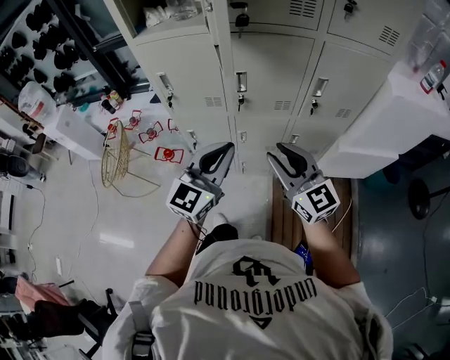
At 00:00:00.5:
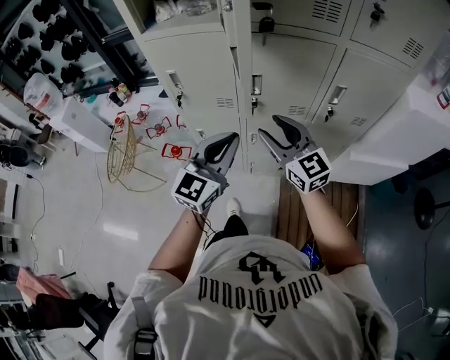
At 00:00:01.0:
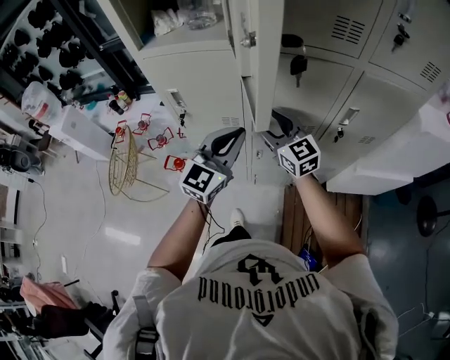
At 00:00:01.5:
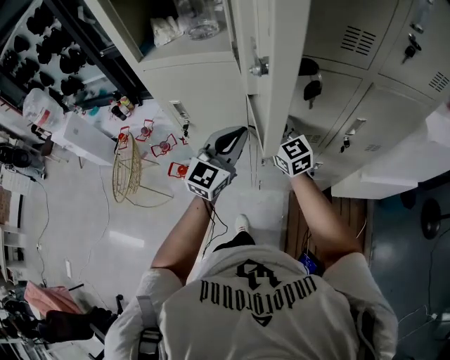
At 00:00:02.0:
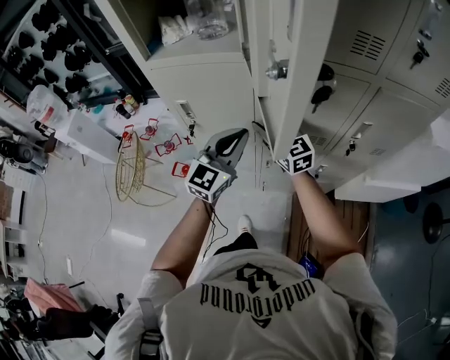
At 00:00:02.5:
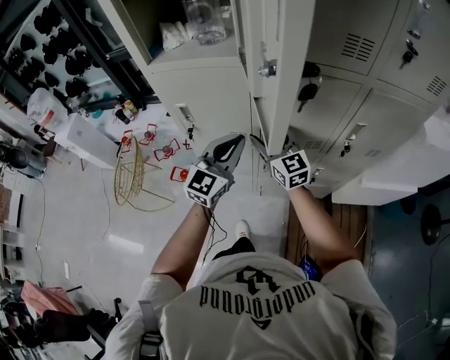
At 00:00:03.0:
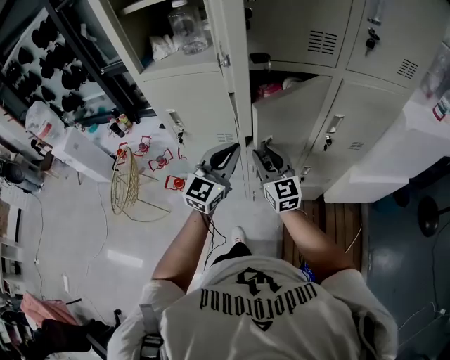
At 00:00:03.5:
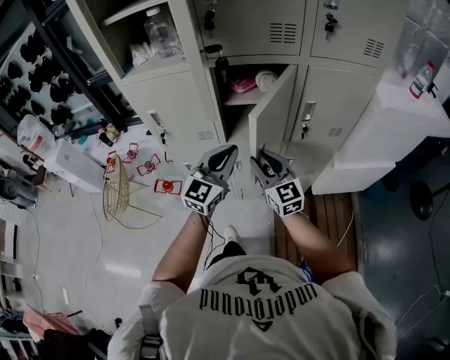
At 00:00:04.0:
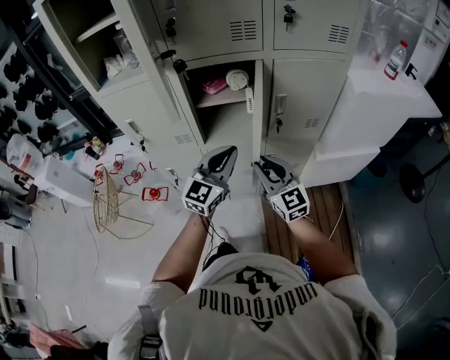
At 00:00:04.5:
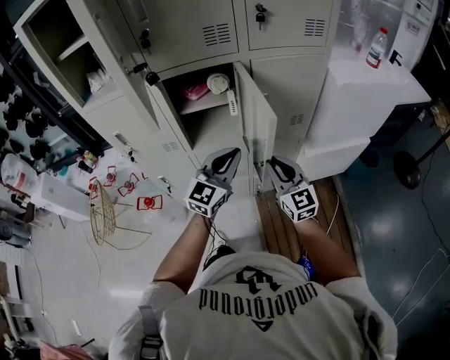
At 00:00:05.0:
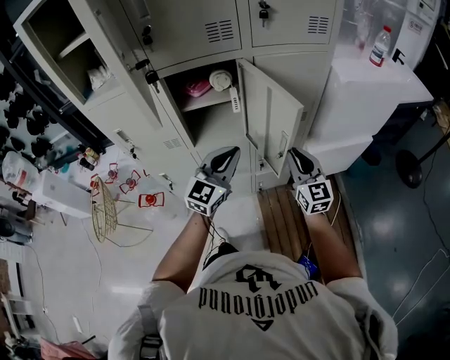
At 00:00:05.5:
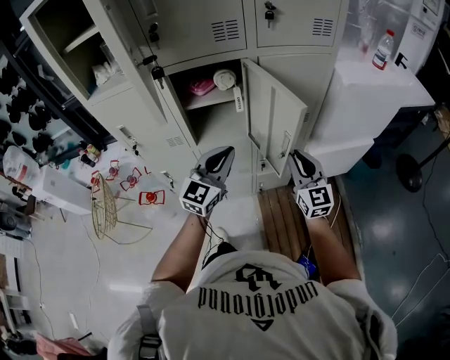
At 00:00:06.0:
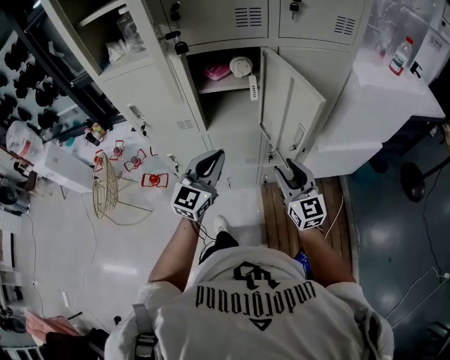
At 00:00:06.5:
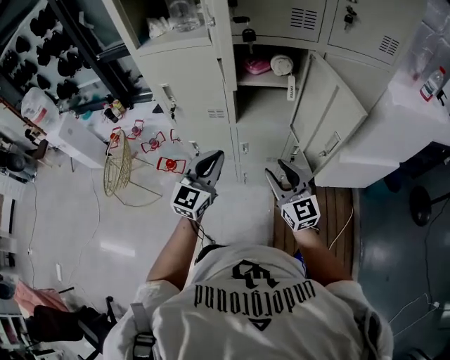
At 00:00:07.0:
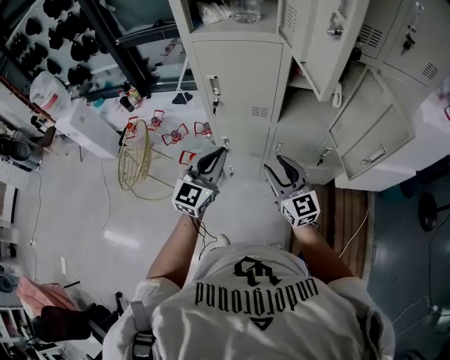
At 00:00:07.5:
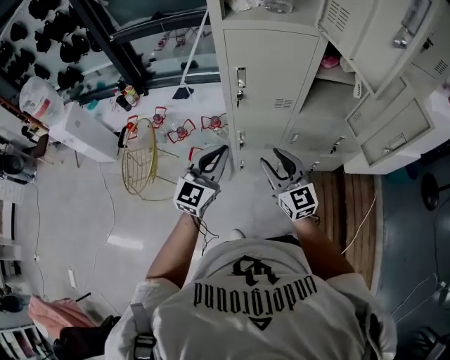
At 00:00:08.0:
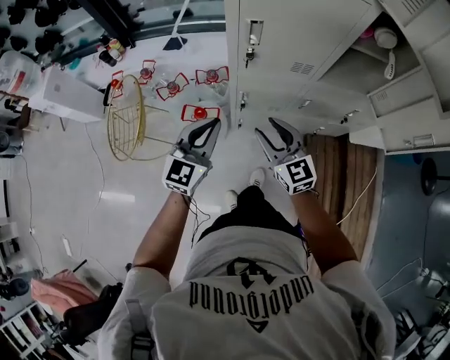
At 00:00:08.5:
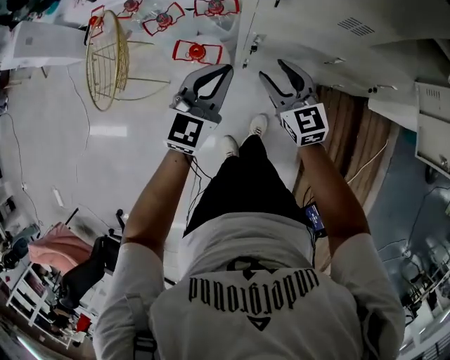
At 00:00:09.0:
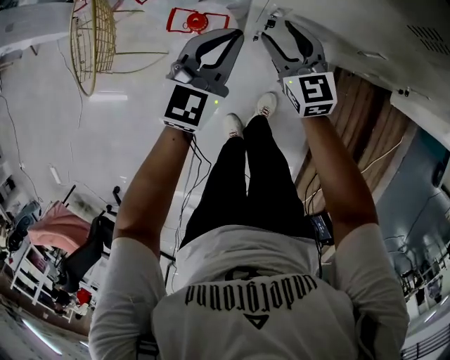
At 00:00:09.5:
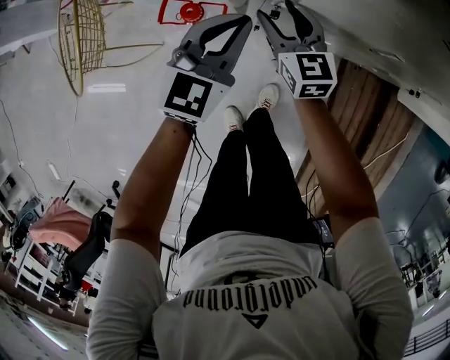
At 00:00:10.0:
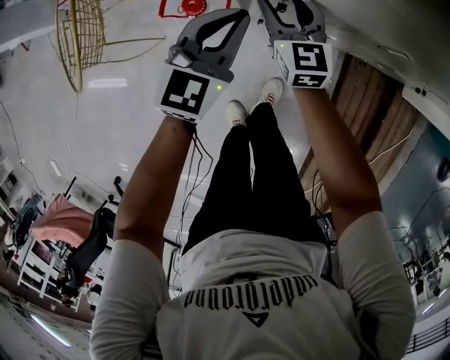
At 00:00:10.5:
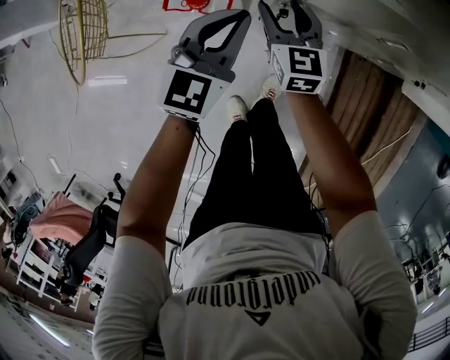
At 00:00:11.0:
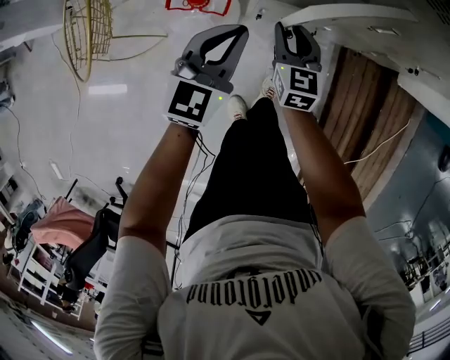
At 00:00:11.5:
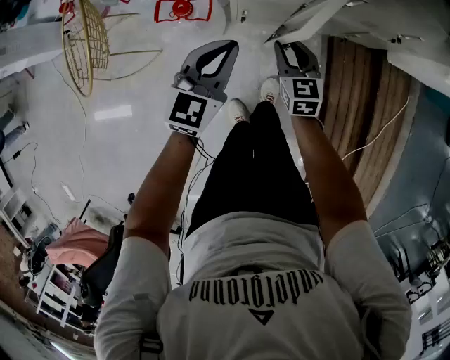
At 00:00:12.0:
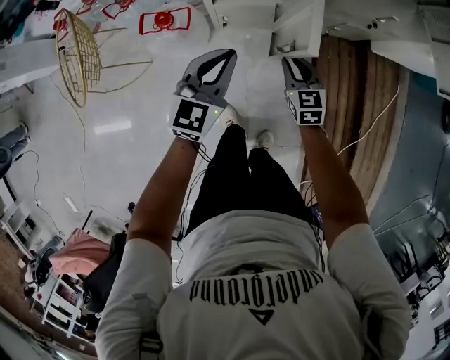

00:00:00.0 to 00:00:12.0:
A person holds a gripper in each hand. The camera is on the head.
00:00:00.0 to 00:00:02.0: Both grippers travel together forward, some 25 cm. The right gripper opens.
00:00:02.0 to 00:00:04.0: The two grippers go about 25 cm to the right and backward. The right gripper closes.
00:00:04.0 to 00:00:06.0: The left gripper shifts by about 5 cm, while the right gripper goes approximately 5 cm to the right.
00:00:06.0 to 00:00:08.0: The pair of grippers is taken to the left, some 50 cm.
00:00:08.0 to 00:00:10.0: Both grippers move downward and forward, about 35 cm.
00:00:10.0 to 00:00:12.0: The left gripper travels backward and to the right by about 20 cm, while the right gripper heads to the right and backward, covering about 30 cm, swivels roughly 20 degrees, and closes its fingers.

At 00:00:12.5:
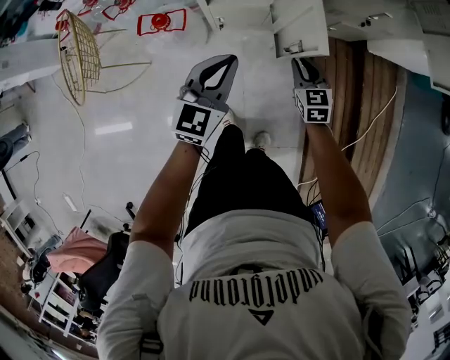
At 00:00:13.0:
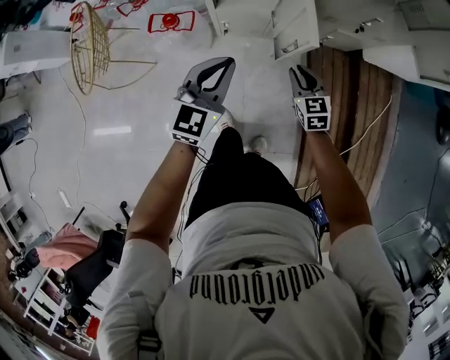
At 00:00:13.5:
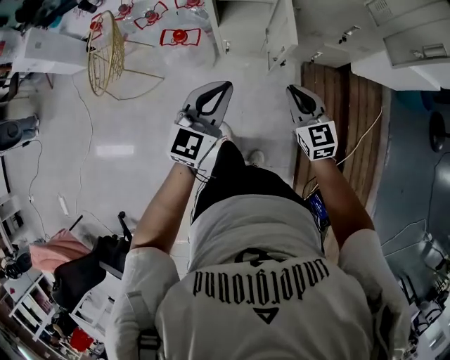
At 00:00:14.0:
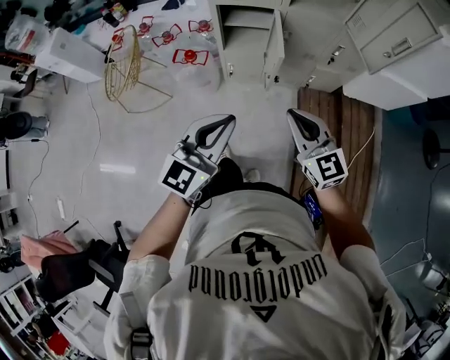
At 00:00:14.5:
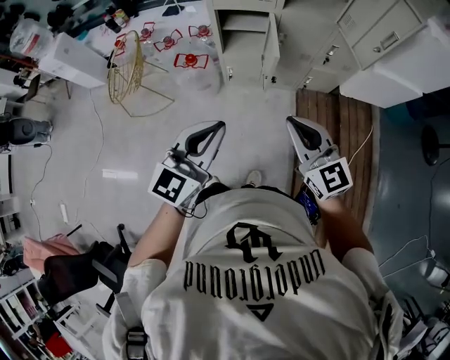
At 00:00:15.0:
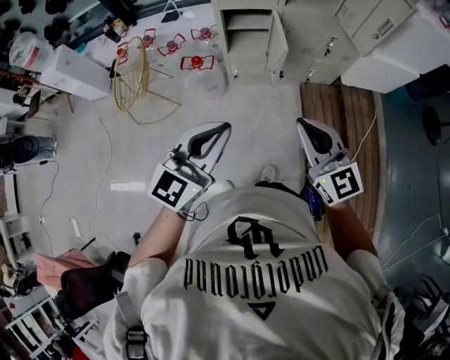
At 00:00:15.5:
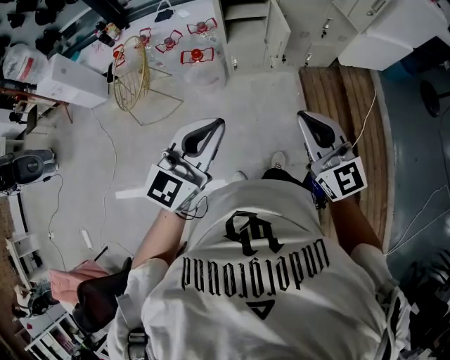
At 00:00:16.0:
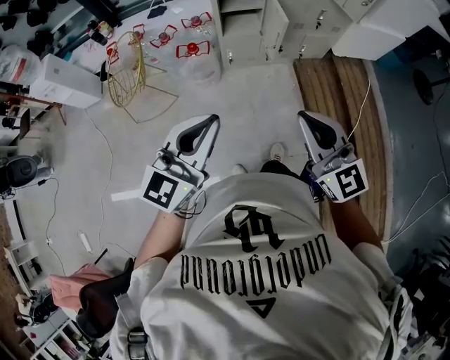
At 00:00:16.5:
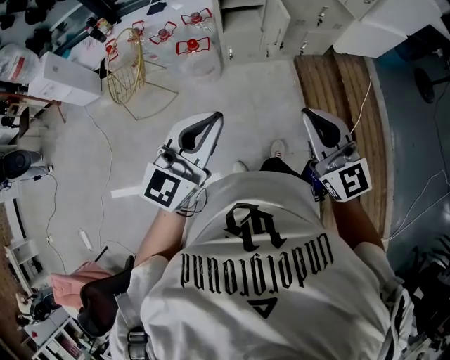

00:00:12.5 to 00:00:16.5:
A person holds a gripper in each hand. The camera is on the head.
00:00:12.5 to 00:00:14.5: The right gripper heads upward and backward, covering about 50 cm, and rotates approximately 40 degrees. Meanwhile the left gripper moves backward and upward, roughly 40 cm.
00:00:14.5 to 00:00:16.5: The right gripper is displaced backward and to the left by approximately 20 cm; the left gripper heads to the left and backward, covering roughly 20 cm.

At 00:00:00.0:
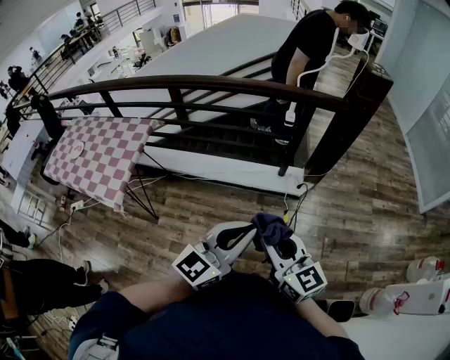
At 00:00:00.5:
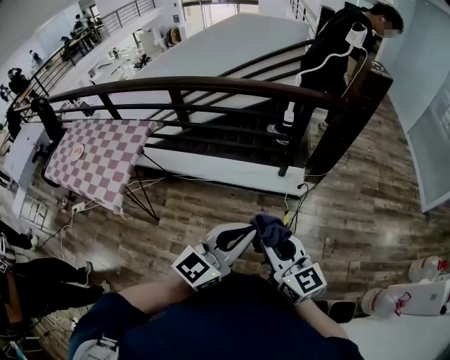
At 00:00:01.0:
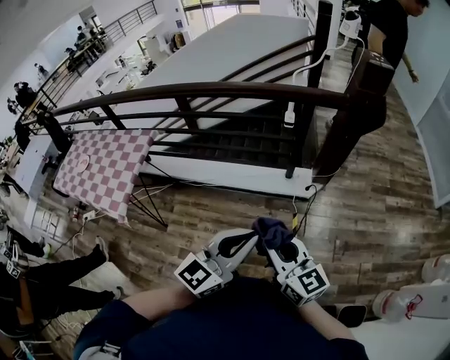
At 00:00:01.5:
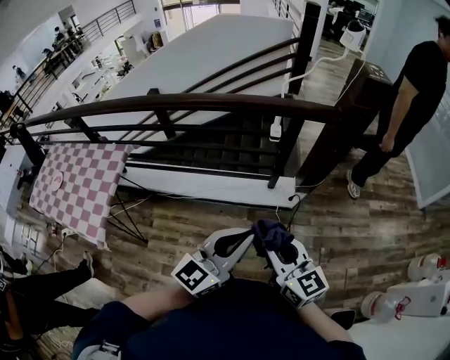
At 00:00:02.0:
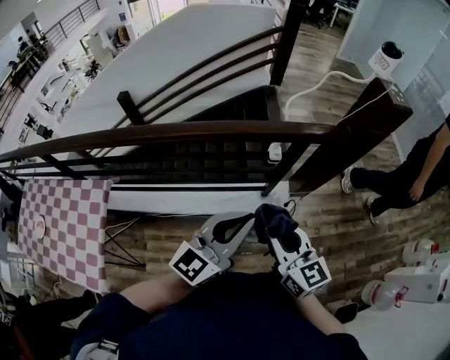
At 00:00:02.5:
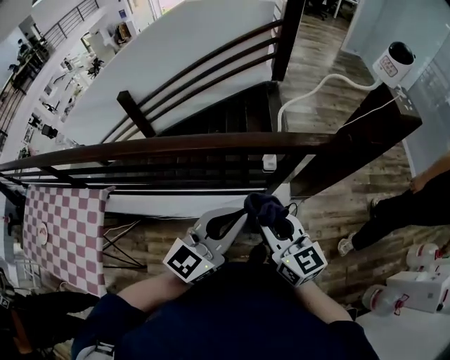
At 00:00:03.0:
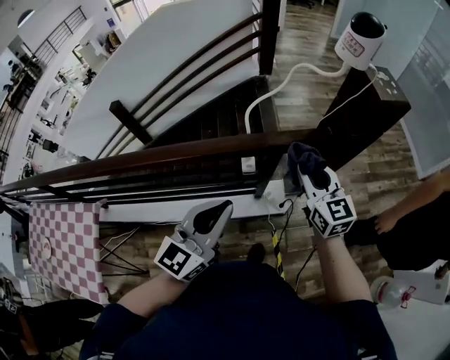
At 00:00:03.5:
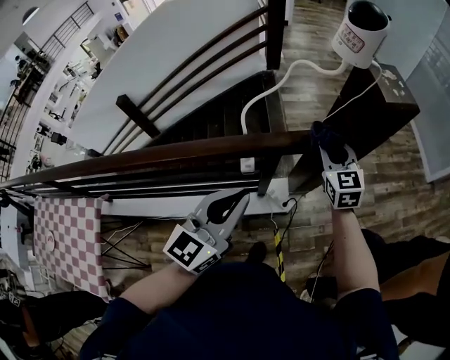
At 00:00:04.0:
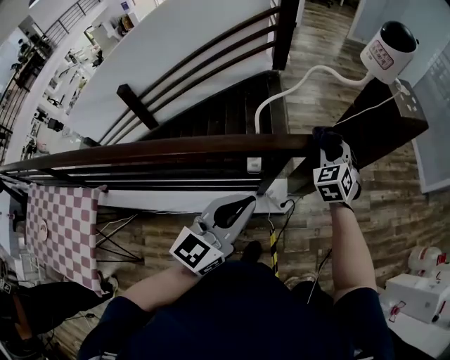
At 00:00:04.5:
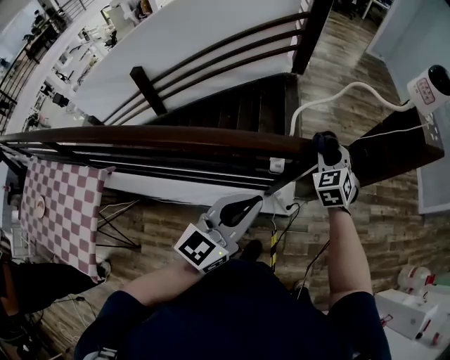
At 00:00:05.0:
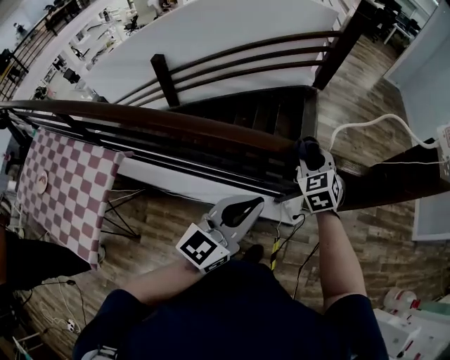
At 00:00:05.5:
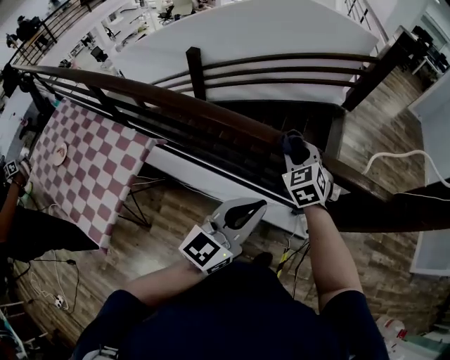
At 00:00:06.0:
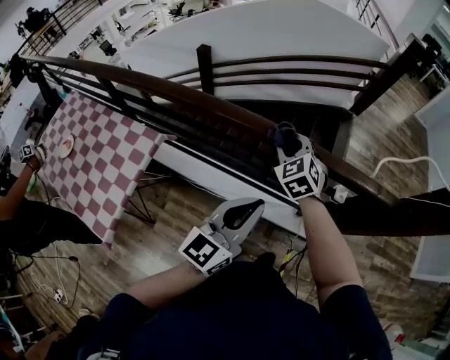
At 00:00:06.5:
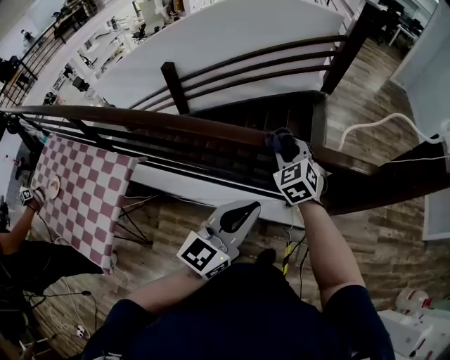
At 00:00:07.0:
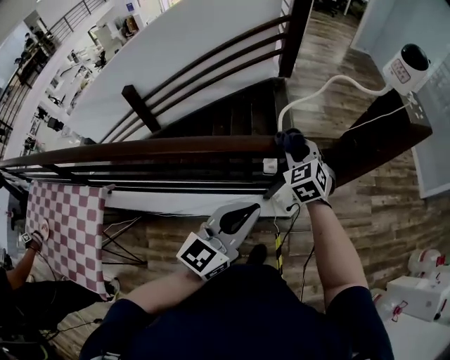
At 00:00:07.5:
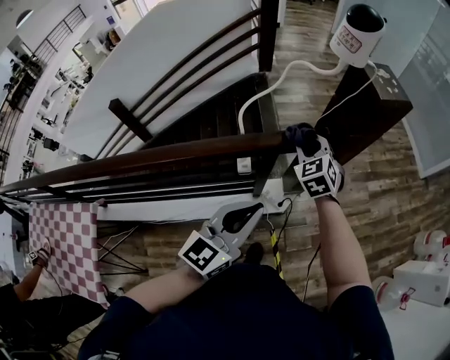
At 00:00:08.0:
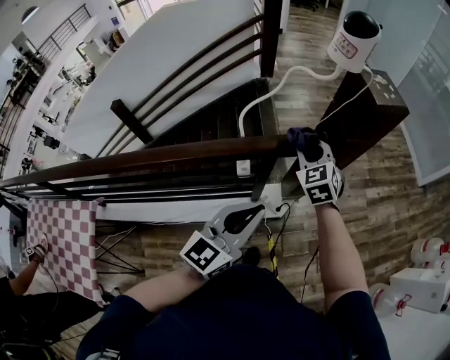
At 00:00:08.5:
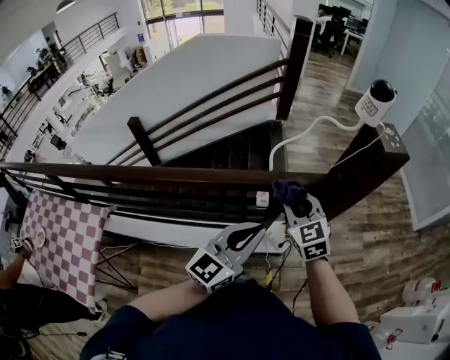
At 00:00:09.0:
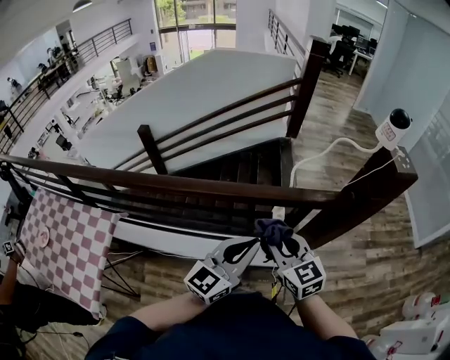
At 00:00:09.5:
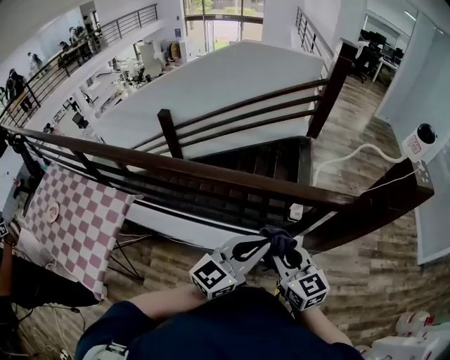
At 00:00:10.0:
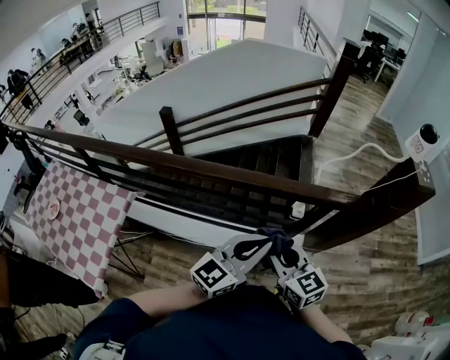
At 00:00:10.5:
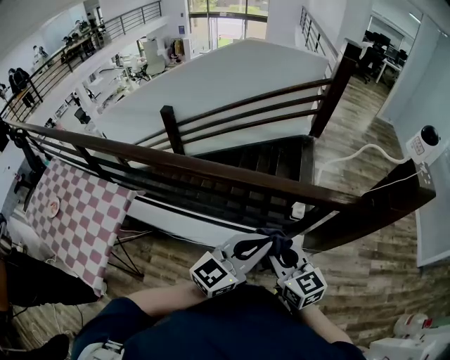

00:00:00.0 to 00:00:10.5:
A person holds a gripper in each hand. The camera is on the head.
00:00:00.0 to 00:00:02.0: Both grippers move forward, about 40 cm.
00:00:02.0 to 00:00:04.0: The right gripper shifts about 50 cm forward and to the right, and changes its angle by roughly 60 degrees, while the left gripper travels forward and to the right by roughly 20 cm.
00:00:04.0 to 00:00:06.5: The right gripper moves about 40 cm, and turns by approximately 30 degrees. Meanwhile the left gripper ends up roughly 25 cm from where it was.
00:00:06.5 to 00:00:08.5: Both grippers move to the right, approximately 25 cm. The right gripper rotates about 20 degrees.
00:00:08.5 to 00:00:10.5: The left gripper heads to the left, covering about 10 cm. The right gripper goes about 20 cm to the left and backward, and swivels some 30 degrees.
